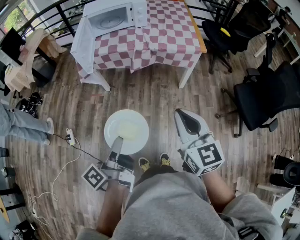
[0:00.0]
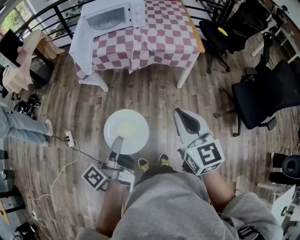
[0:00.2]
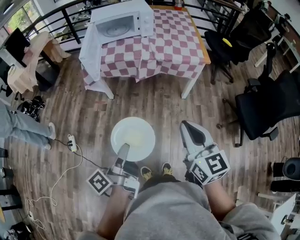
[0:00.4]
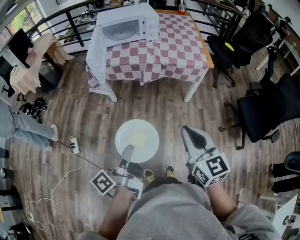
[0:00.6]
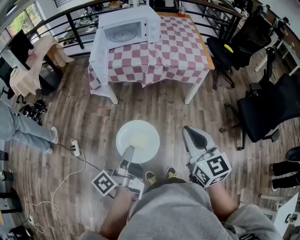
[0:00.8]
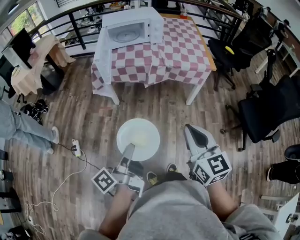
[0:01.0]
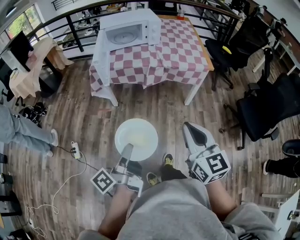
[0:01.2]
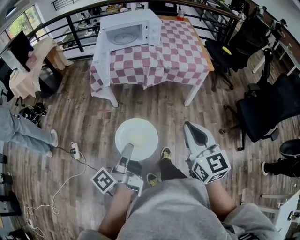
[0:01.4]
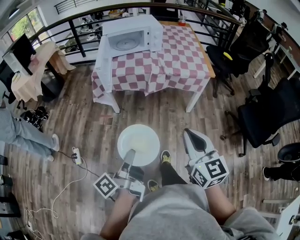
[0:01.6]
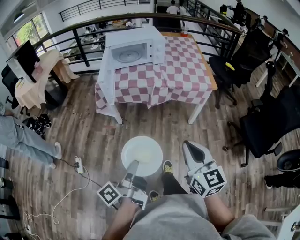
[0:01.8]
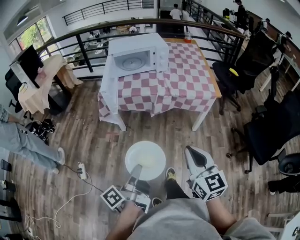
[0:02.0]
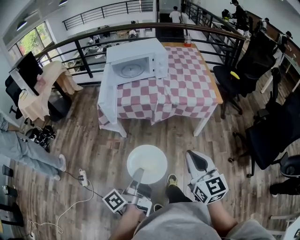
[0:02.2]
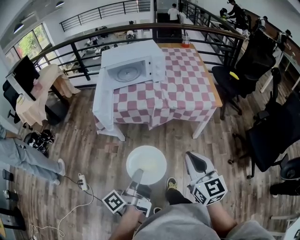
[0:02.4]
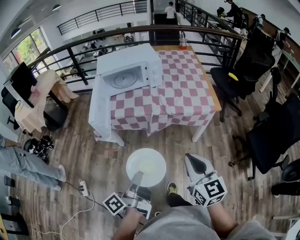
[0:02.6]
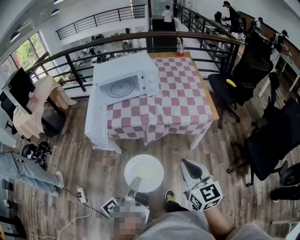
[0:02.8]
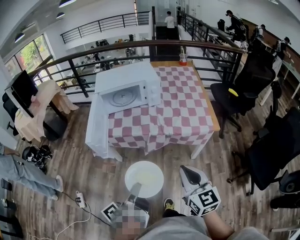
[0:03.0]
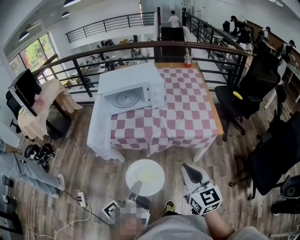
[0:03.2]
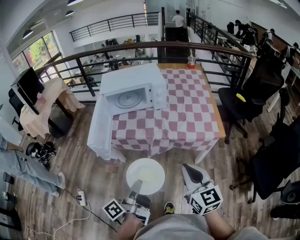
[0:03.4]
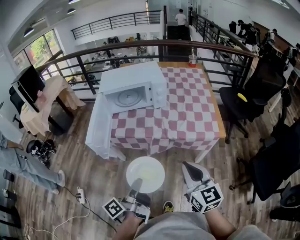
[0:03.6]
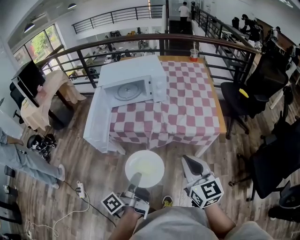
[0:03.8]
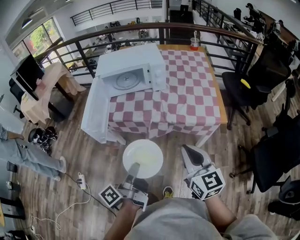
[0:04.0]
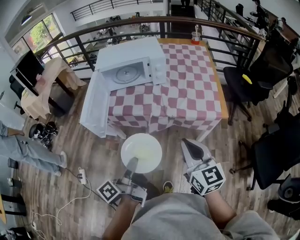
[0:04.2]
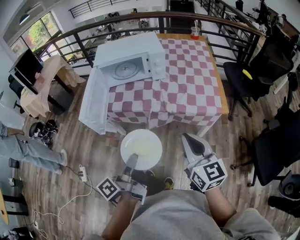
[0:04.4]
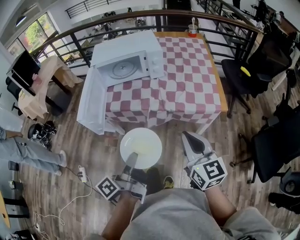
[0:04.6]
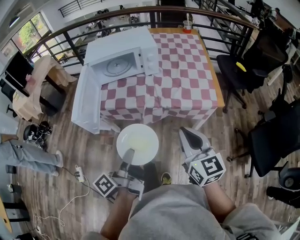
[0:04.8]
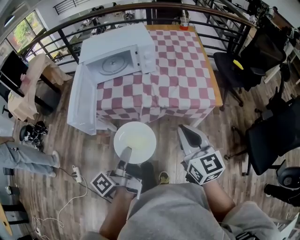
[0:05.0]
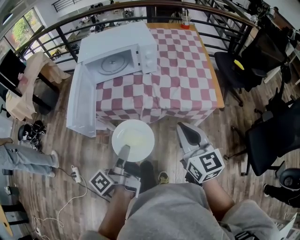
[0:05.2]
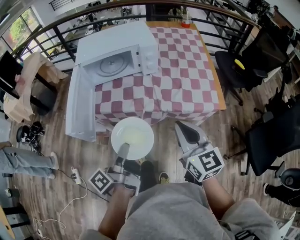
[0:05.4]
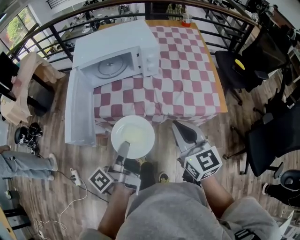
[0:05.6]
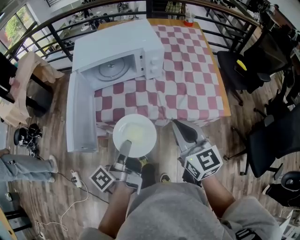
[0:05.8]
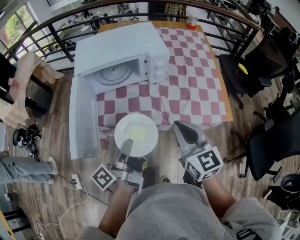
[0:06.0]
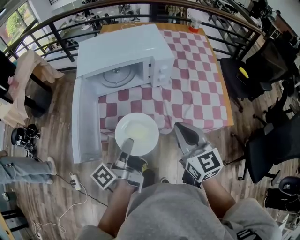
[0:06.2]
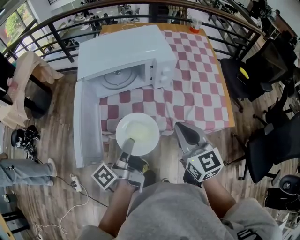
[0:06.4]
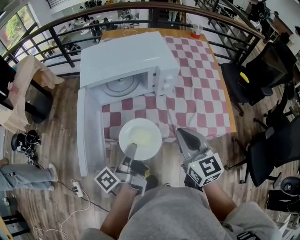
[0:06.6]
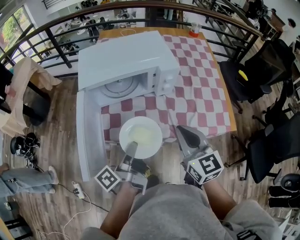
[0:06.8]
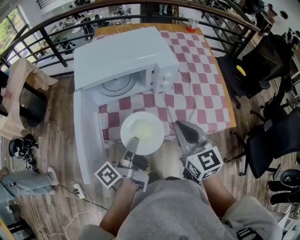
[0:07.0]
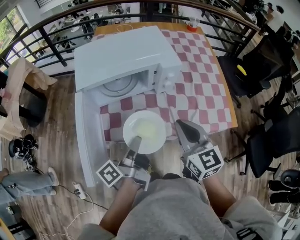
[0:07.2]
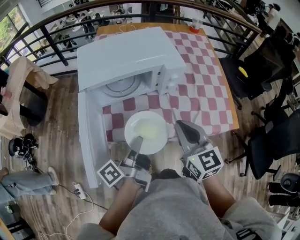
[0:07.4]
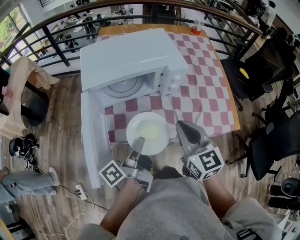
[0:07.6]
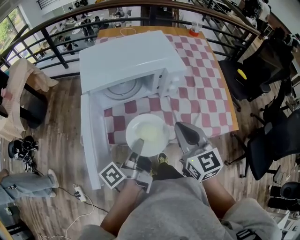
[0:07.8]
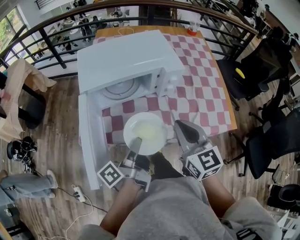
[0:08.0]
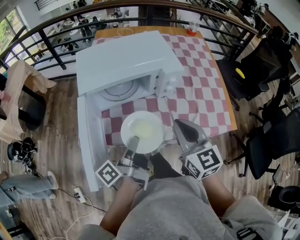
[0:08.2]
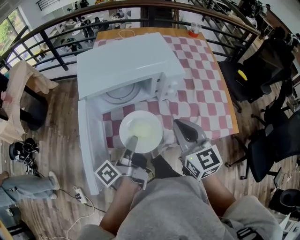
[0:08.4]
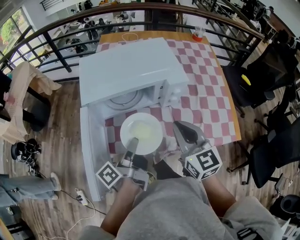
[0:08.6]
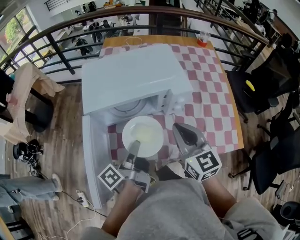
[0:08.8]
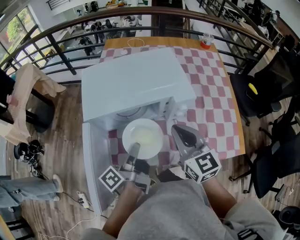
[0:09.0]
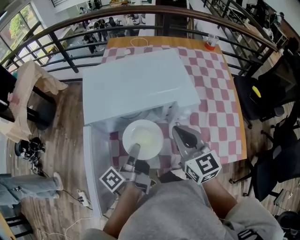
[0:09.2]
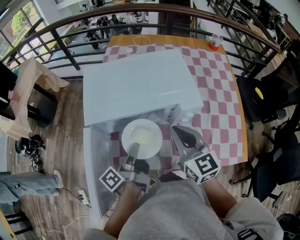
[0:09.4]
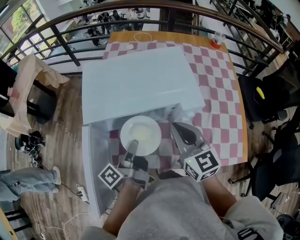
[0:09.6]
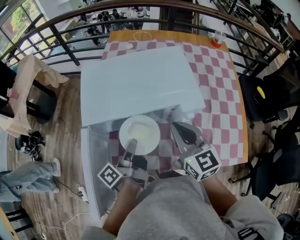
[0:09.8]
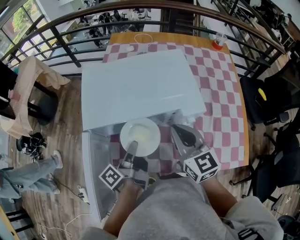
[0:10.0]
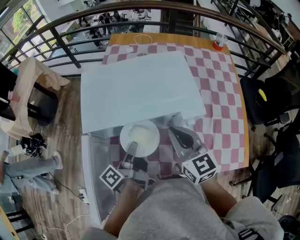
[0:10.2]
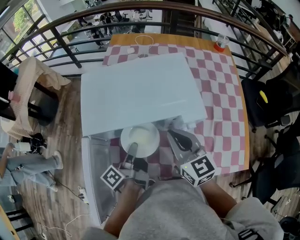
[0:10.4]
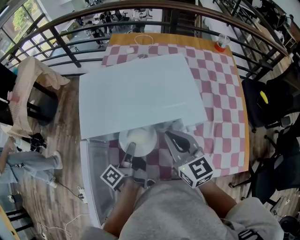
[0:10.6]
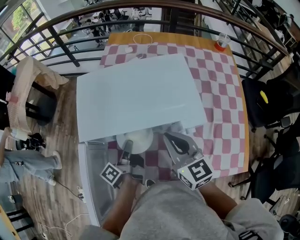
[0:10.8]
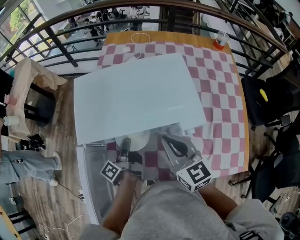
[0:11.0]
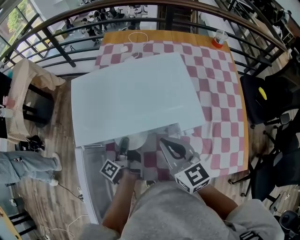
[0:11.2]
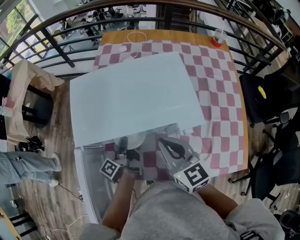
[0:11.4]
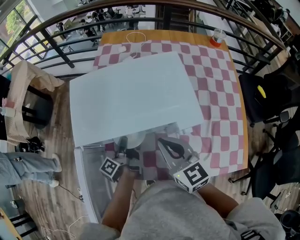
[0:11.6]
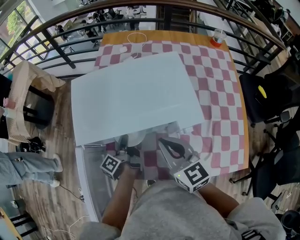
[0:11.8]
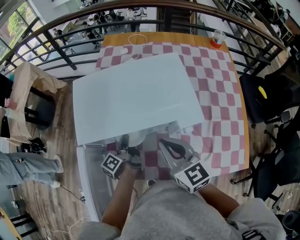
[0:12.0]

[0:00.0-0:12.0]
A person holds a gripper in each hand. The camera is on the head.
0.0 to 1.6 s: The grippers both shift to the left by some 10 cm.
1.6 to 3.0 s: Both grippers move forward, some 25 cm.
3.0 to 4.4 s: Both grippers move forward, some 5 cm.
4.4 to 6.0 s: Both grippers move forward, approximately 20 cm.
6.0 to 7.6 s: The right gripper heads forward and to the left, covering about 10 cm. The left gripper travels forward by about 10 cm.
7.6 to 9.0 s: The grippers both shift forward by roughly 10 cm.
9.0 to 10.4 s: Both grippers travel together forward, approximately 10 cm.
10.4 to 12.0 s: The left gripper travels downward and forward by roughly 10 cm.

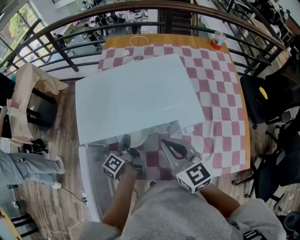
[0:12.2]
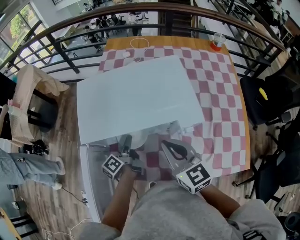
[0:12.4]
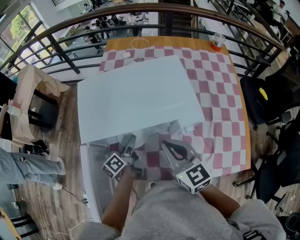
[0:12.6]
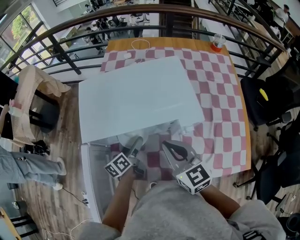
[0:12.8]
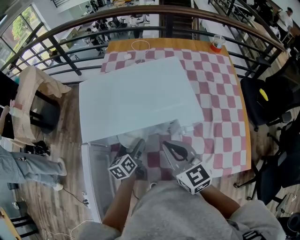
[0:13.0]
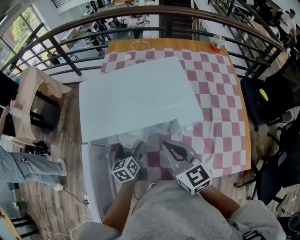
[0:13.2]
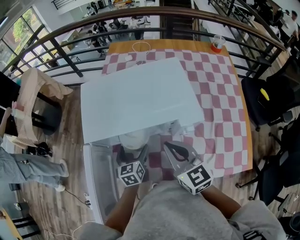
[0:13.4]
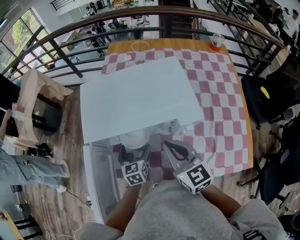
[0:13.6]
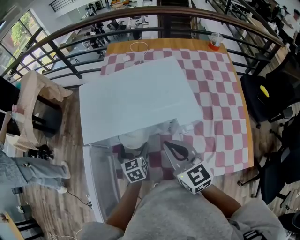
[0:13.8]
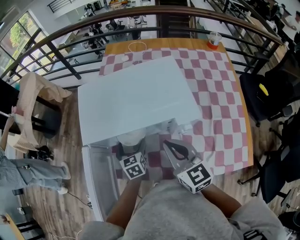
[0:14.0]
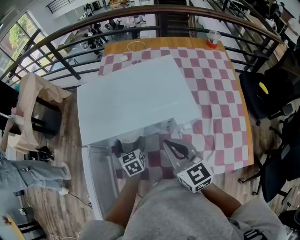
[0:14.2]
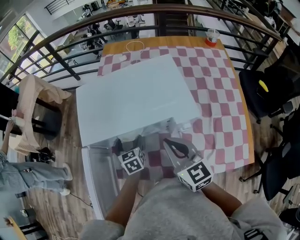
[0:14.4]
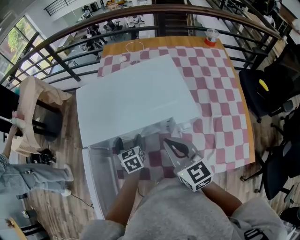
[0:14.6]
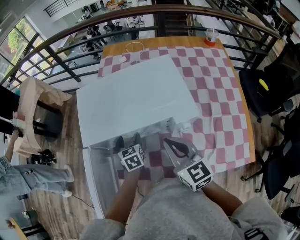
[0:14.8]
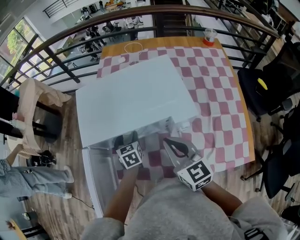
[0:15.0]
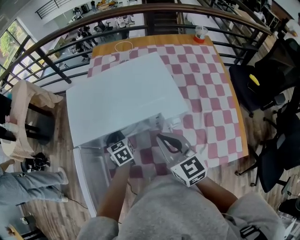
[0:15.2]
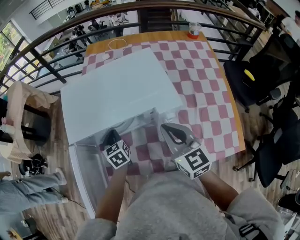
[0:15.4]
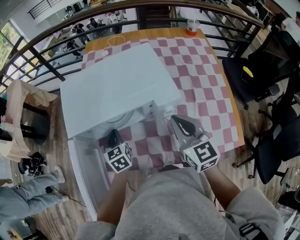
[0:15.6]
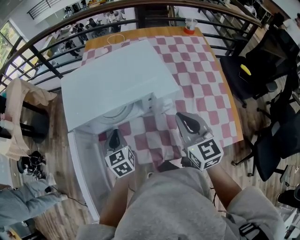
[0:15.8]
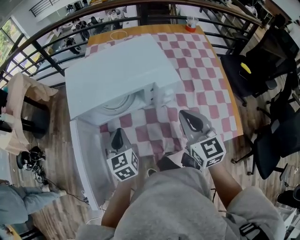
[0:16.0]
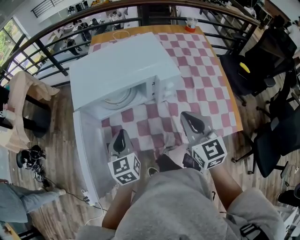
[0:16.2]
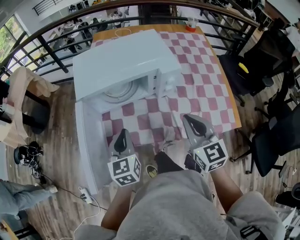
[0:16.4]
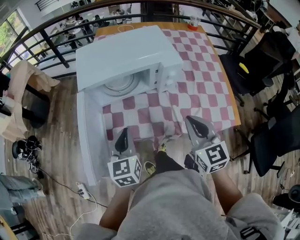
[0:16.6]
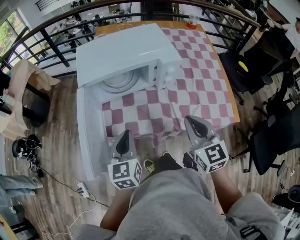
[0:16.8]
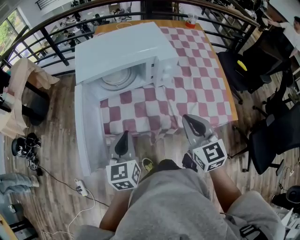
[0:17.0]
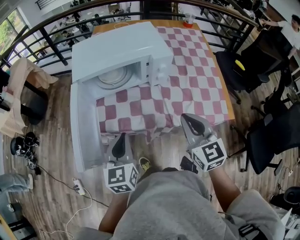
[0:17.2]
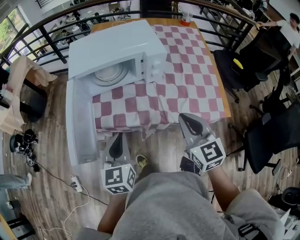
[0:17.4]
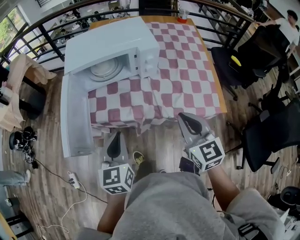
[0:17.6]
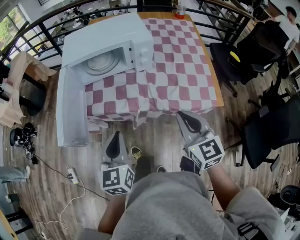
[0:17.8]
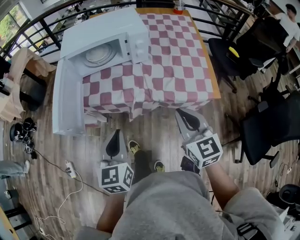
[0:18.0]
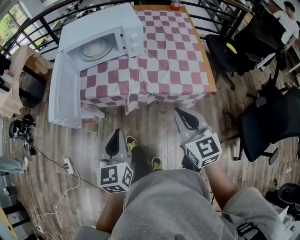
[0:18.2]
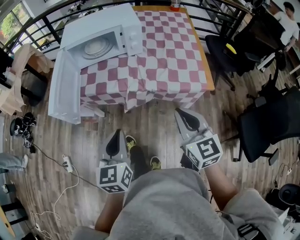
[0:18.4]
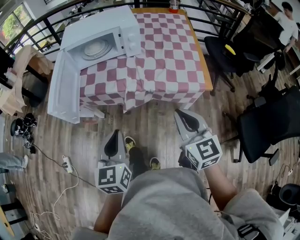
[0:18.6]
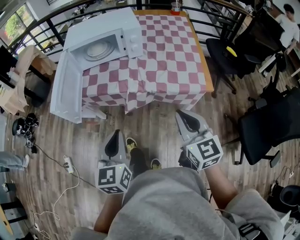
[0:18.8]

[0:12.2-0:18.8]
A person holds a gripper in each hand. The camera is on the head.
12.2 to 13.8 s: The left gripper rotates around the line of its fingers by roughly 70 degrees, clockwise from behind, and opens.
13.8 to 15.4 s: The right gripper shifts about 5 cm to the right. Meanwhile the left gripper closes up.
15.4 to 17.2 s: The right gripper moves backward, some 25 cm. Meanwhile the left gripper goes roughly 35 cm backward and upward, and rotates about 30 degrees.
17.2 to 18.8 s: The grippers both shift backward and to the right by about 25 cm.

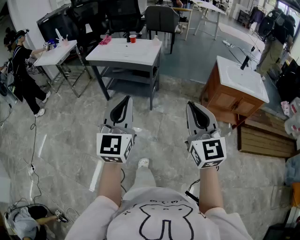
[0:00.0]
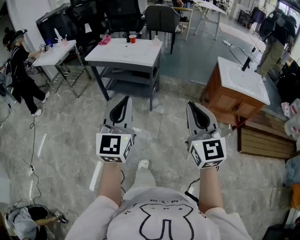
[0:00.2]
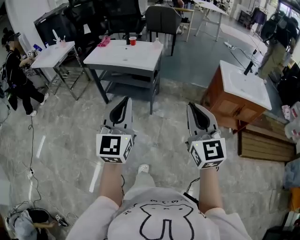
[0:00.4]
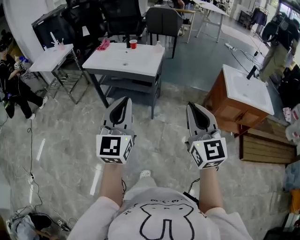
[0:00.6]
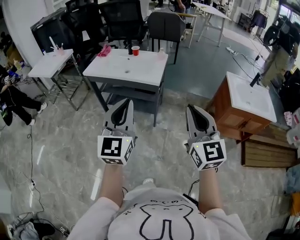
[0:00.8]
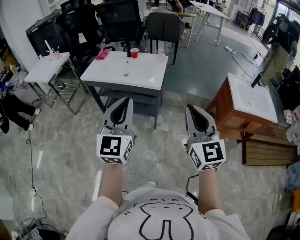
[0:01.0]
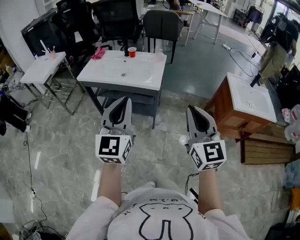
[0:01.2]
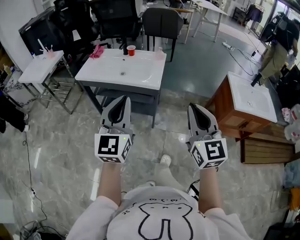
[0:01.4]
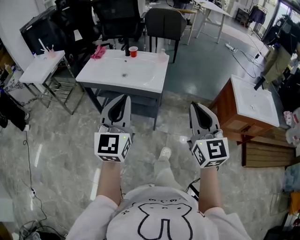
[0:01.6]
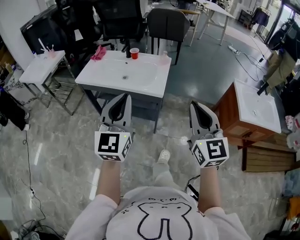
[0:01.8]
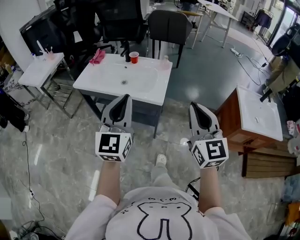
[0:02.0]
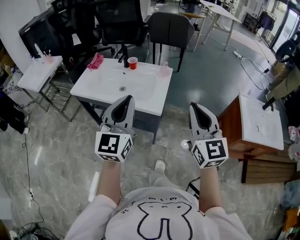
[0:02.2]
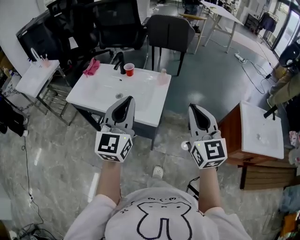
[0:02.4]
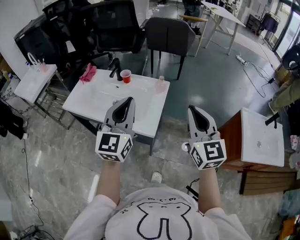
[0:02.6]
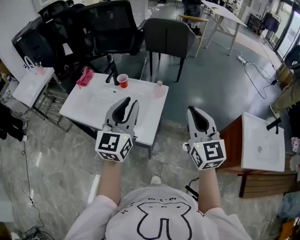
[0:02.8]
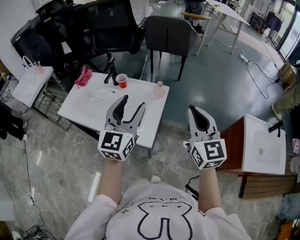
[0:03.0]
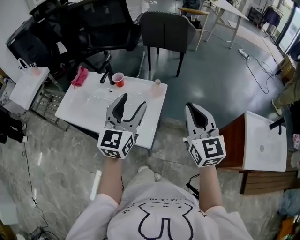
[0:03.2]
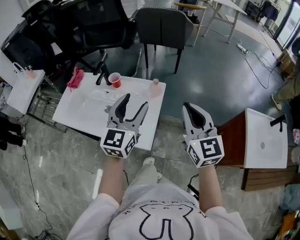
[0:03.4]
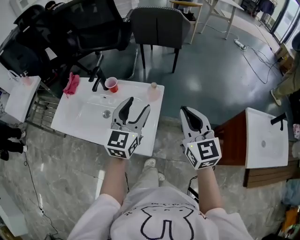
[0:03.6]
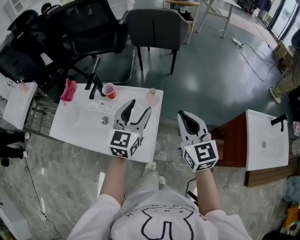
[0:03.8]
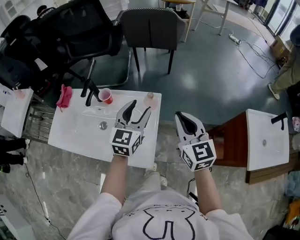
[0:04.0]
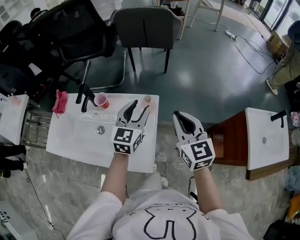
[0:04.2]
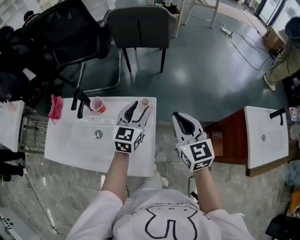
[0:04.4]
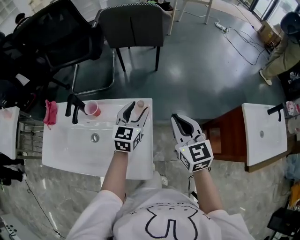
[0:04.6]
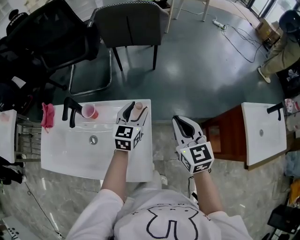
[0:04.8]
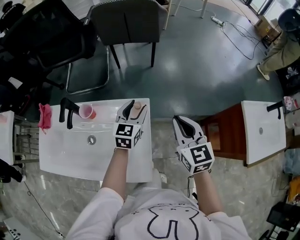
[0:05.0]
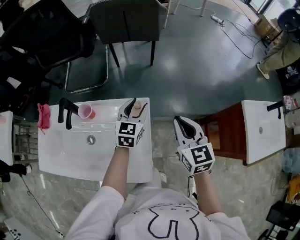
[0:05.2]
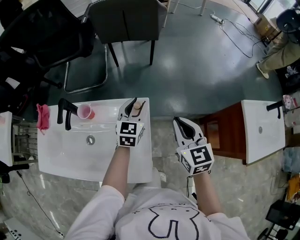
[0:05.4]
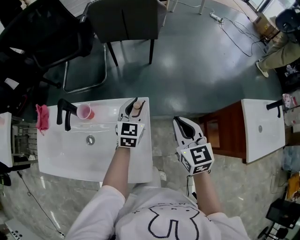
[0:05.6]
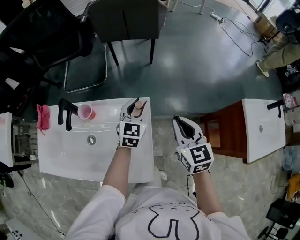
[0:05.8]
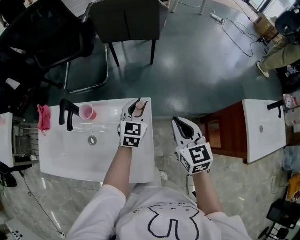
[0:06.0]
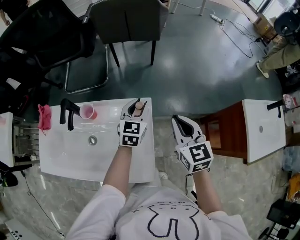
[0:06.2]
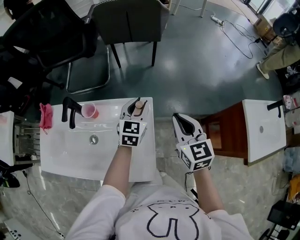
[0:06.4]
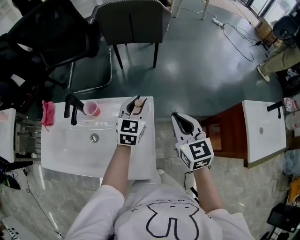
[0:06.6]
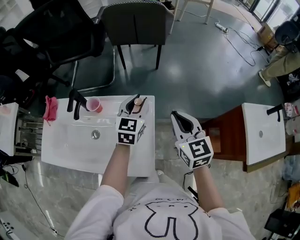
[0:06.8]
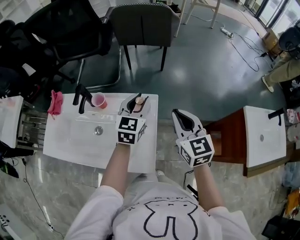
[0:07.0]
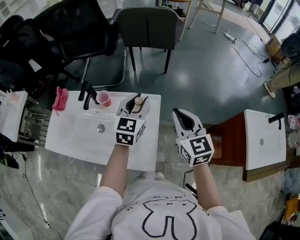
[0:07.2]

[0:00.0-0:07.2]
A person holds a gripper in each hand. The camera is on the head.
0.0 to 1.4 s: The two grippers go roughly 30 cm forward.
1.4 to 2.8 s: Both grippers move forward, approximately 40 cm.
2.8 to 4.4 s: The grippers both shift forward and downward by approximately 25 cm. The left gripper turns by approximately 30 degrees, and opens.
4.4 to 5.8 s: The right gripper shifts some 5 cm downward, while the left gripper goes roughly 10 cm downward and forward.
5.8 to 7.2 s: The right gripper travels upward by roughly 5 cm. The left gripper heads upward and backward, covering approximately 15 cm.
